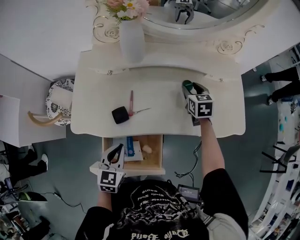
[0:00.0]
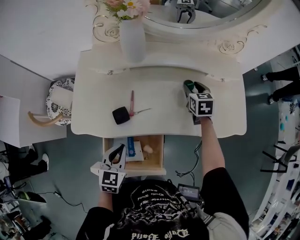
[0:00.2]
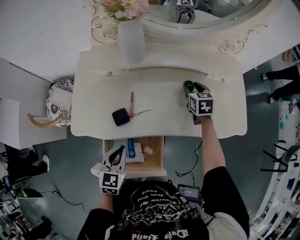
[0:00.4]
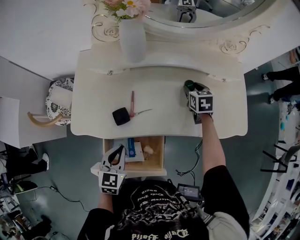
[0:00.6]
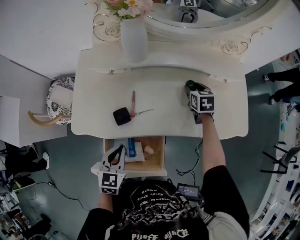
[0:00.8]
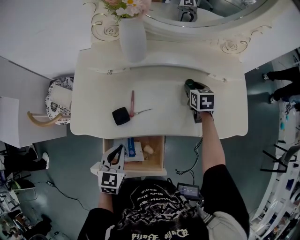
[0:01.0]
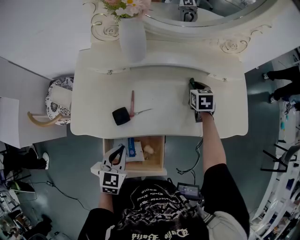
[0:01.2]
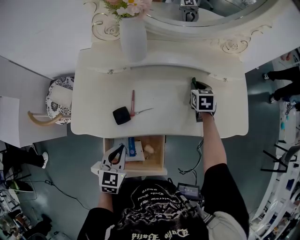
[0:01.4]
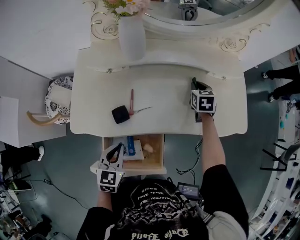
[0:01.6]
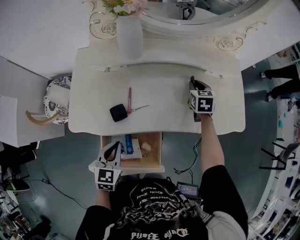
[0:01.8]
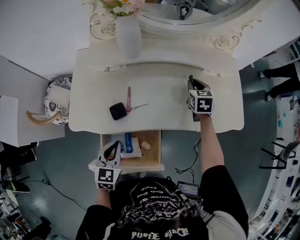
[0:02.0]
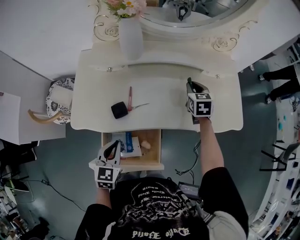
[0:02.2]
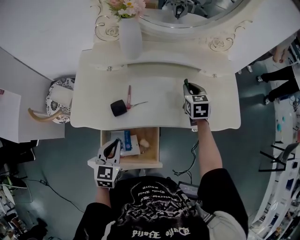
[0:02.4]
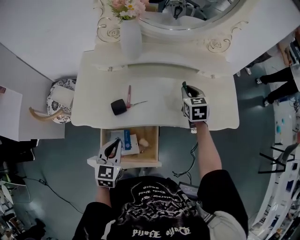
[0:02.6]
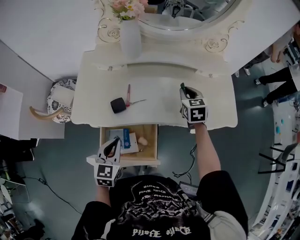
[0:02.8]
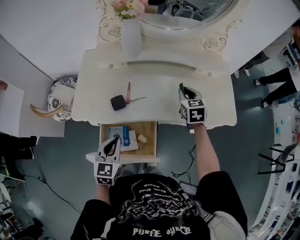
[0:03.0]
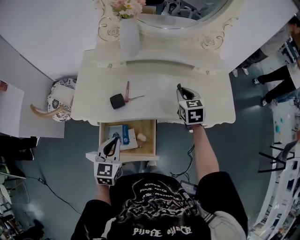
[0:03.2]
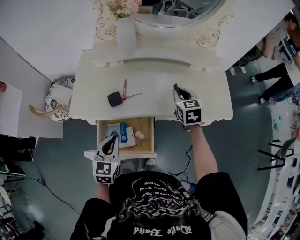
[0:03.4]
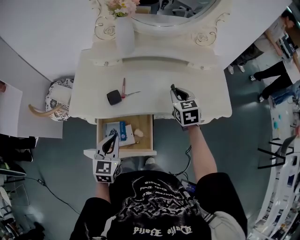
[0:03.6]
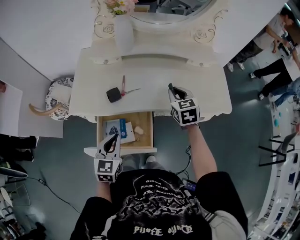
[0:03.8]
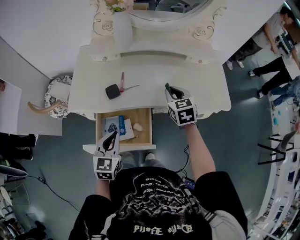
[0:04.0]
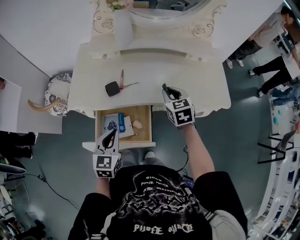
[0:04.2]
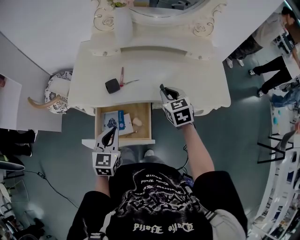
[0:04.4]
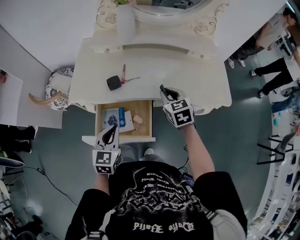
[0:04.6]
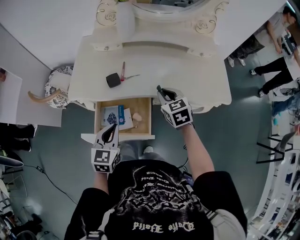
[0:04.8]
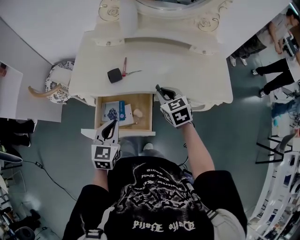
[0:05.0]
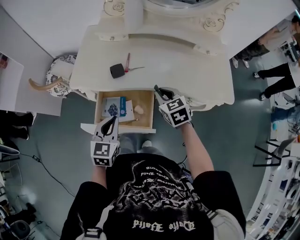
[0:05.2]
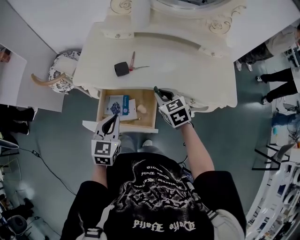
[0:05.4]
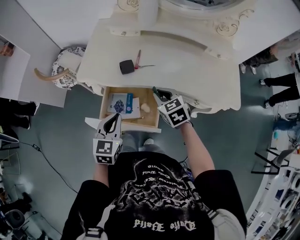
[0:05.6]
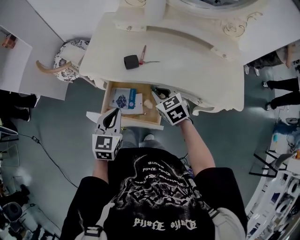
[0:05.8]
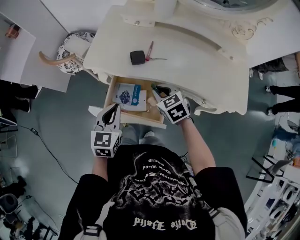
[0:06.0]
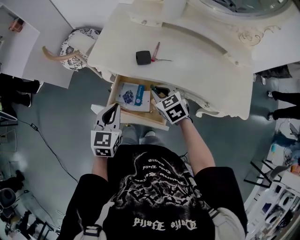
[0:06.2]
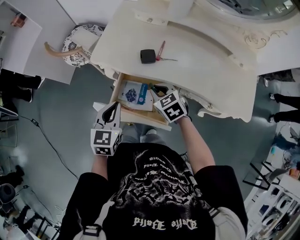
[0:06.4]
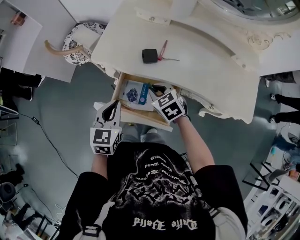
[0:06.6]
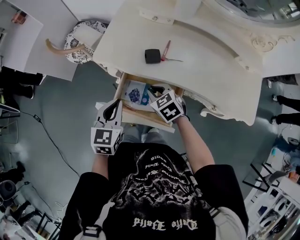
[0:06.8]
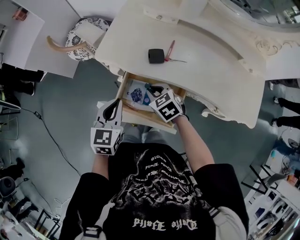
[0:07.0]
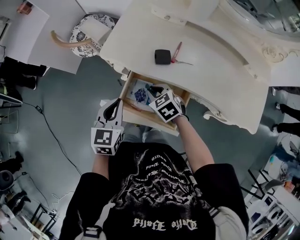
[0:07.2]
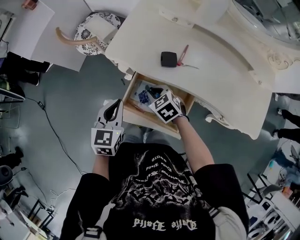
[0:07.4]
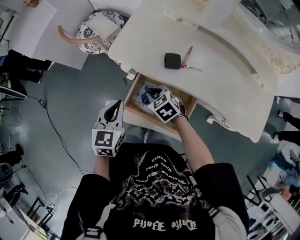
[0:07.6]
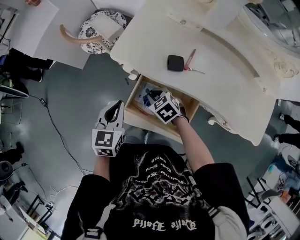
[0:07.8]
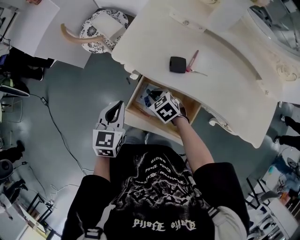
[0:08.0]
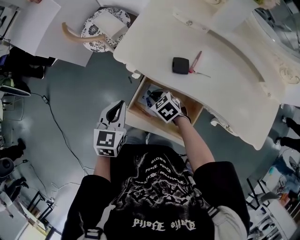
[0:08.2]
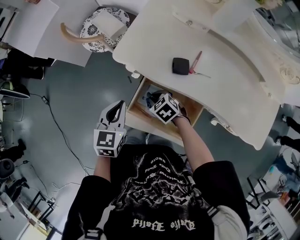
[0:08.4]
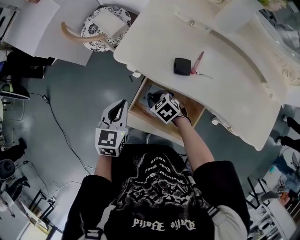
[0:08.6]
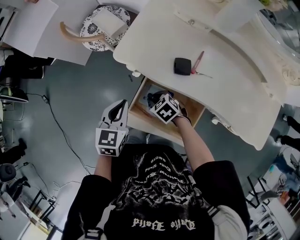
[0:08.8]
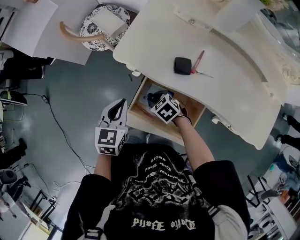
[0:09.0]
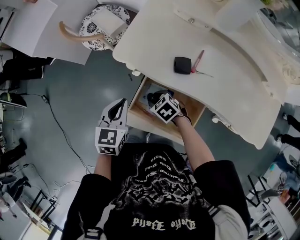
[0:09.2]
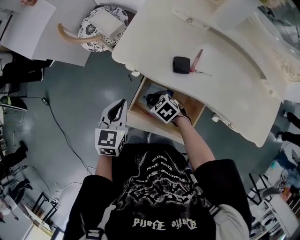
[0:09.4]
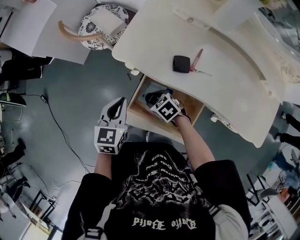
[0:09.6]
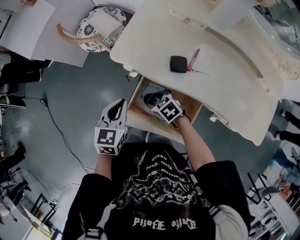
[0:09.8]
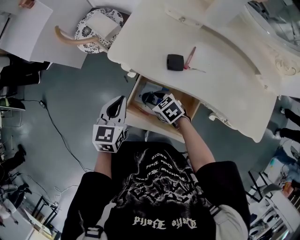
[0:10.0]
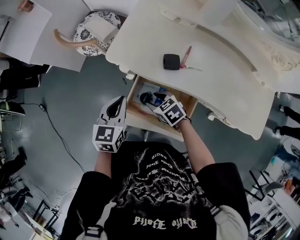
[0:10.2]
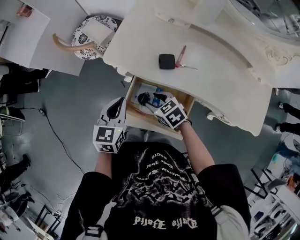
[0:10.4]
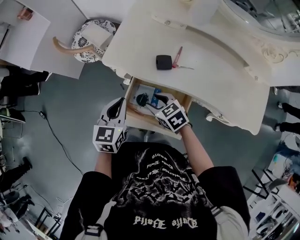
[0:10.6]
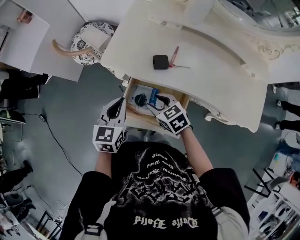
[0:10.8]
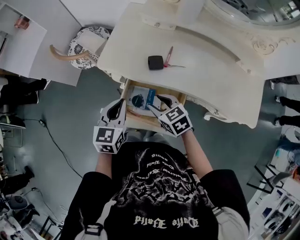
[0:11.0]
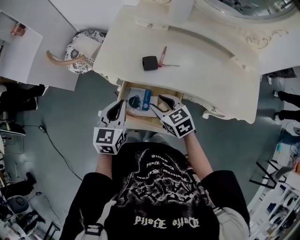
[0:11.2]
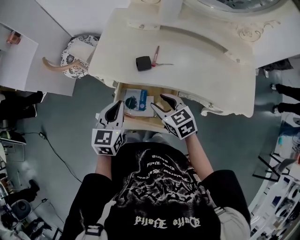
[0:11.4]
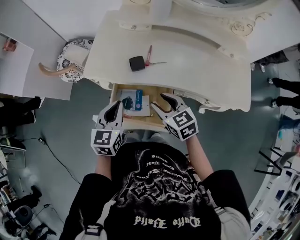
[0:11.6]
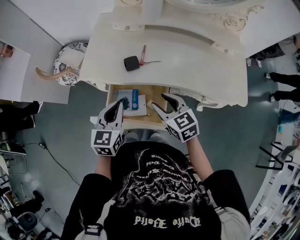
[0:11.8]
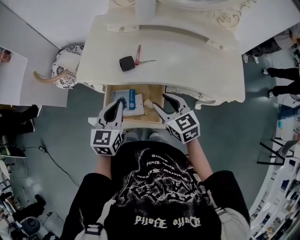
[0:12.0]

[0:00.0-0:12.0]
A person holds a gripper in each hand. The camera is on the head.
0:00.0 to 0:01.6: The right gripper closes.
0:01.6 to 0:03.0: The right gripper travels backward and upward by some 15 cm. The left gripper ends up about 5 cm from where it was.
0:03.0 to 0:04.4: The right gripper heads backward and to the left, covering approximately 10 cm. The left gripper ends up approximately 5 cm from where it was.
0:04.4 to 0:06.0: The left gripper moves to the left, approximately 5 cm; the right gripper is displaced to the left and downward by some 15 cm, and rotates about 30 degrees.
0:06.0 to 0:07.6: The left gripper goes roughly 10 cm to the left and forward. The right gripper goes approximately 15 cm to the left, downward and forward, and turns by approximately 20 degrees.
0:07.6 to 0:09.0: The right gripper heads downward, covering roughly 5 cm.
0:09.0 to 0:10.4: The right gripper heads upward, covering some 5 cm.
0:10.4 to 0:12.0: The right gripper ends up roughly 20 cm from where it was, and swivels some 40 degrees. The left gripper shifts by approximately 10 cm.

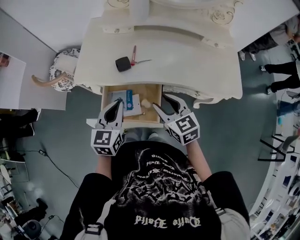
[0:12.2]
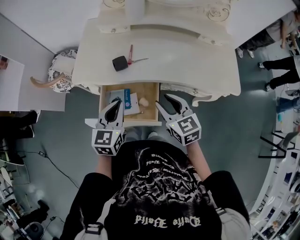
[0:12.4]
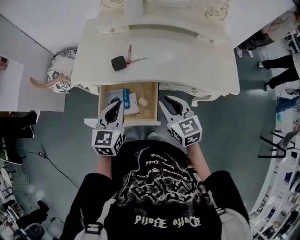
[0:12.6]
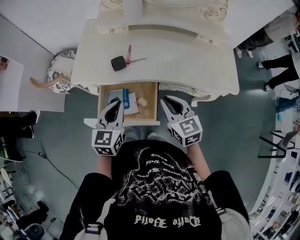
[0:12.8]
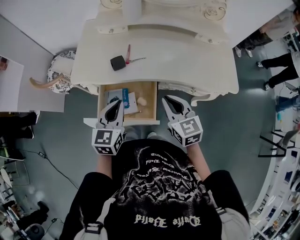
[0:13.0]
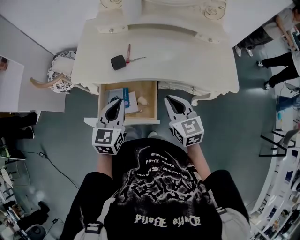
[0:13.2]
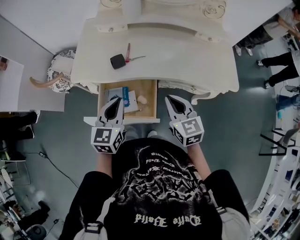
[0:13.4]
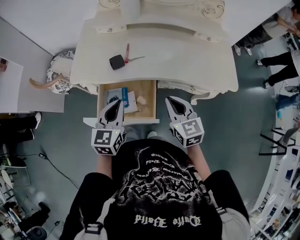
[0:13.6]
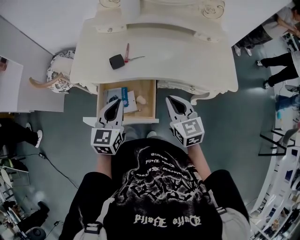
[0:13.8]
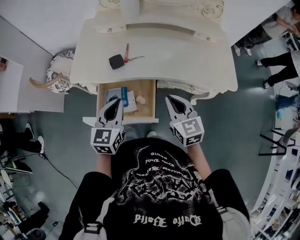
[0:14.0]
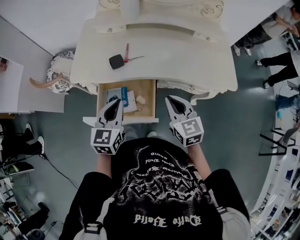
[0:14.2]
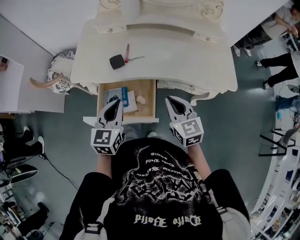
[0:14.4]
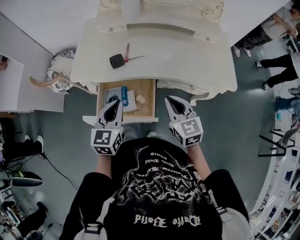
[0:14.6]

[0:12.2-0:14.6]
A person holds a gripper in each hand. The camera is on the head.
0:12.2 to 0:13.4: The right gripper travels to the right by some 5 cm, and closes.
0:13.4 to 0:14.6: The grippers make only small movements.

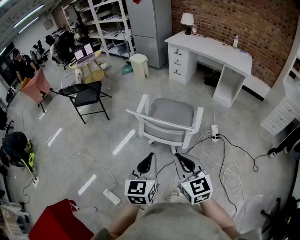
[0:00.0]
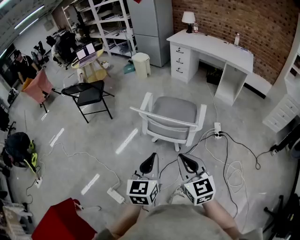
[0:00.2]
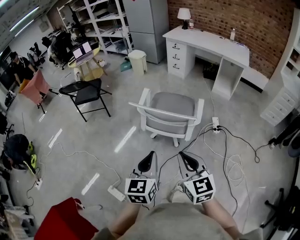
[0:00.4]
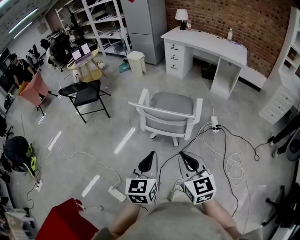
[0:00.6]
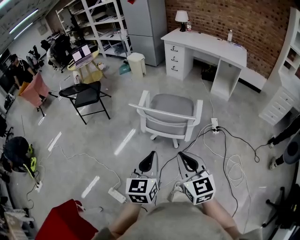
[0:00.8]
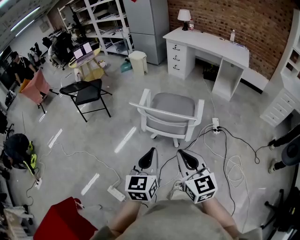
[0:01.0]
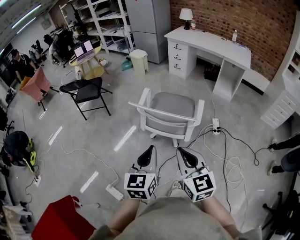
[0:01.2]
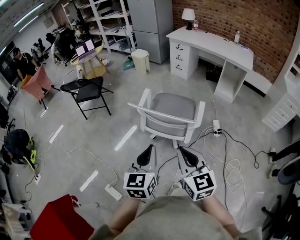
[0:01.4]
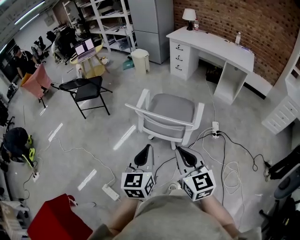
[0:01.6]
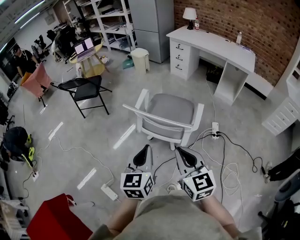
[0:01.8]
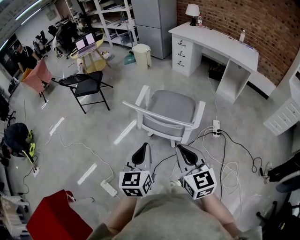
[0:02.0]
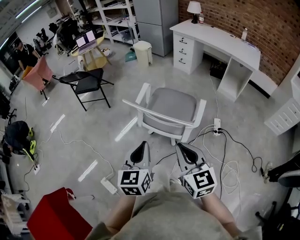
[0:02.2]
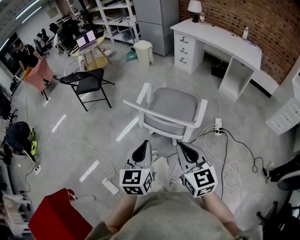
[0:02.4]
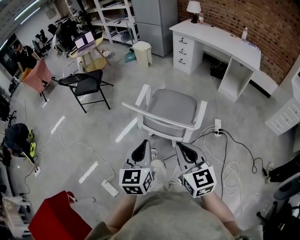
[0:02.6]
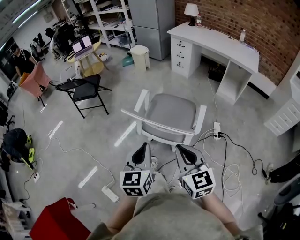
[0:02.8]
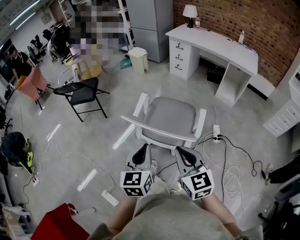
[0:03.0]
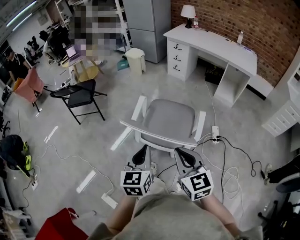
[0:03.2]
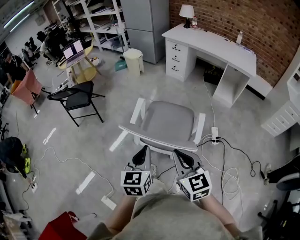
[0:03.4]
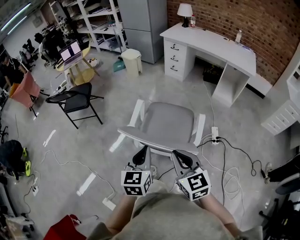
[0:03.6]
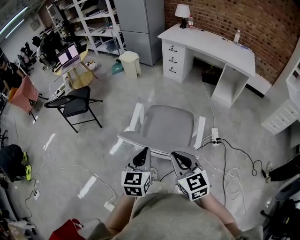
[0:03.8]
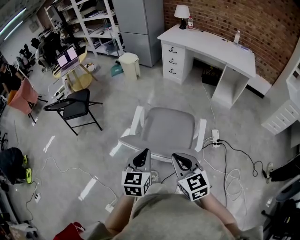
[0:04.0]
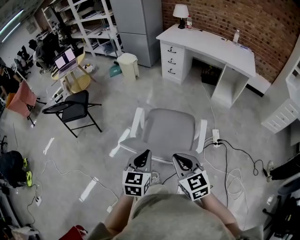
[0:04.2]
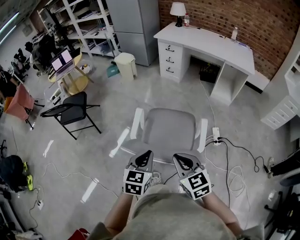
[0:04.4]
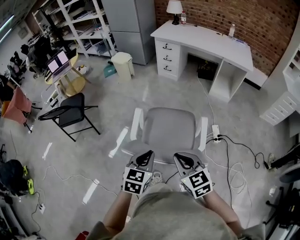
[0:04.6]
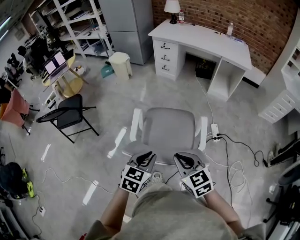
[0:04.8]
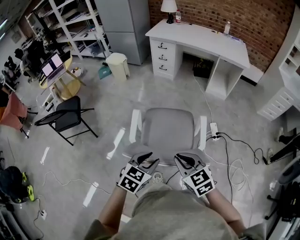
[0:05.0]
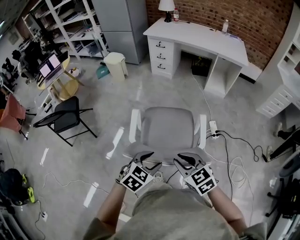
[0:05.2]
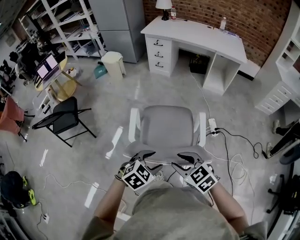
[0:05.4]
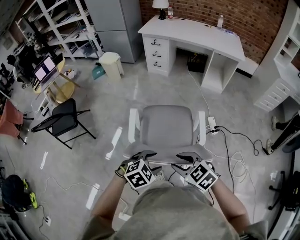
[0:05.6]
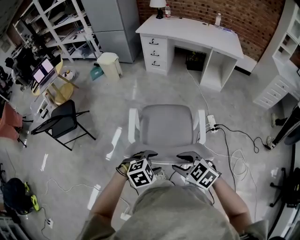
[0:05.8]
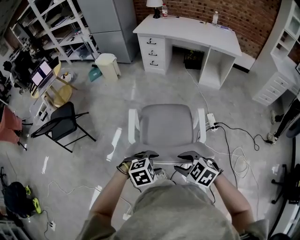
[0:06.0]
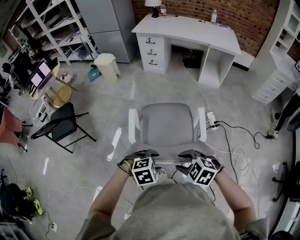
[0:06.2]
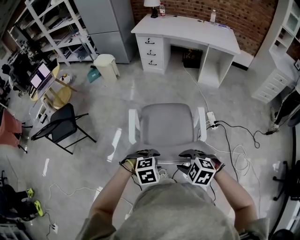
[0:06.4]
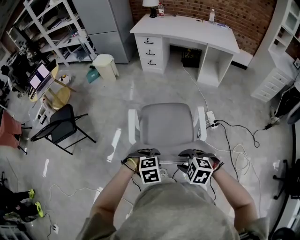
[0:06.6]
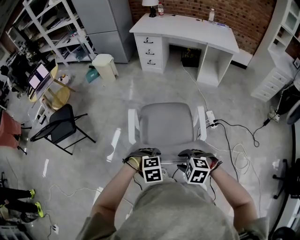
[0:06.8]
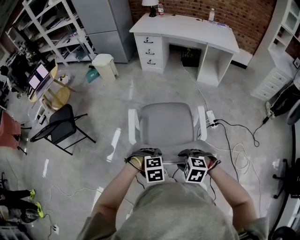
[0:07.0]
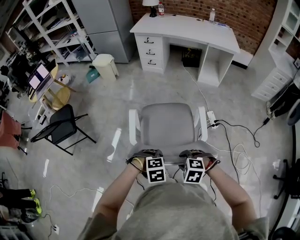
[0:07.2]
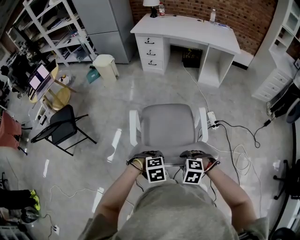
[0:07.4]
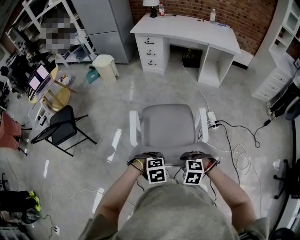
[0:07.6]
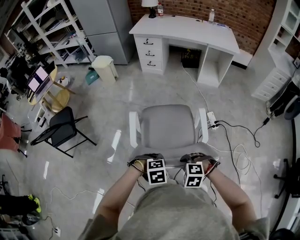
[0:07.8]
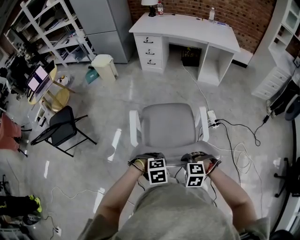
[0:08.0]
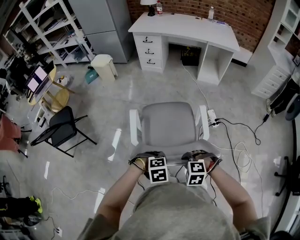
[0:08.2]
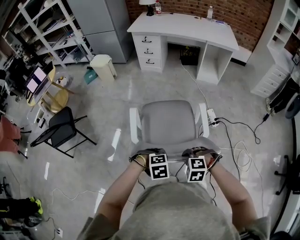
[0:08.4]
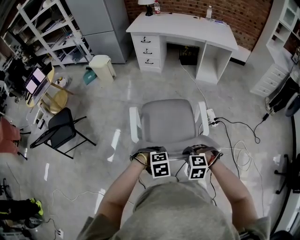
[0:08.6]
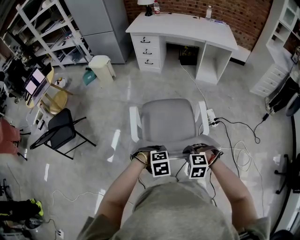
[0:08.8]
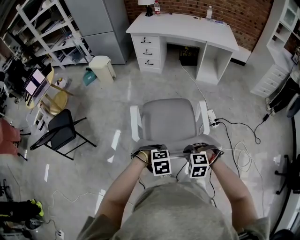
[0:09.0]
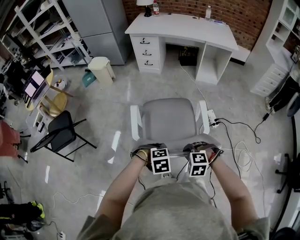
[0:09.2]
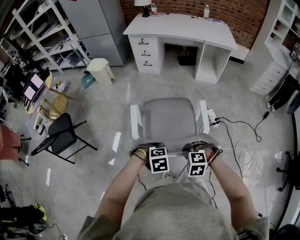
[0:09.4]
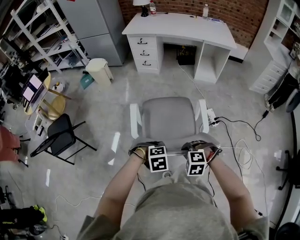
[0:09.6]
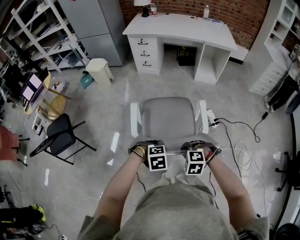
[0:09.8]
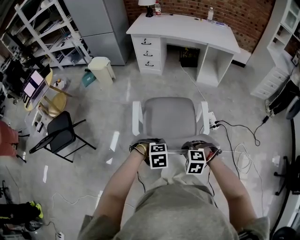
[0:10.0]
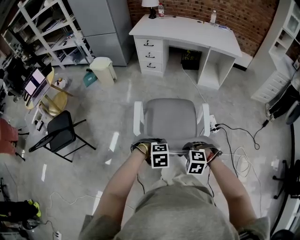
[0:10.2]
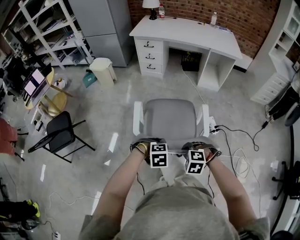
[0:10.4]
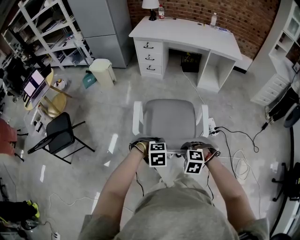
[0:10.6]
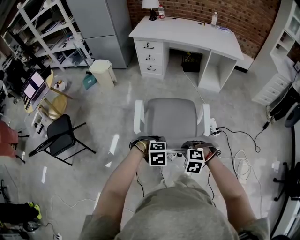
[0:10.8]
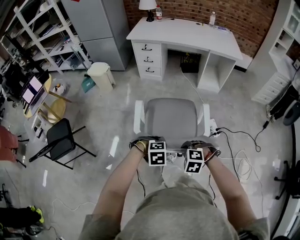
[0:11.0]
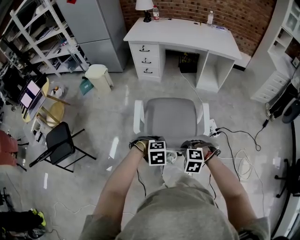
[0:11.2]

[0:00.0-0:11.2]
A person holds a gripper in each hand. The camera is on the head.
0:00.0 to 0:01.6: The grippers move only a little.
0:01.6 to 0:03.2: Both grippers move forward, approximately 15 cm.
0:03.2 to 0:04.8: Both grippers move forward and downward, roughly 15 cm. The left gripper changes its angle by some 40 degrees.
0:04.8 to 0:06.4: Both grippers move downward, approximately 10 cm. The right gripper points its fingers approximately 30 degrees further downward, and opens; the left gripper angles its fingers downward, by approximately 40 degrees, and opens up.
0:06.4 to 0:08.0: The right gripper is displaced downward by approximately 5 cm, swivels some 20 degrees, and closes. The left gripper closes its fingers.
0:08.0 to 0:09.6: The two grippers go some 10 cm forward.
0:09.6 to 0:11.2: The left gripper travels forward and to the left by approximately 15 cm, while the right gripper heads forward, covering roughly 10 cm.
